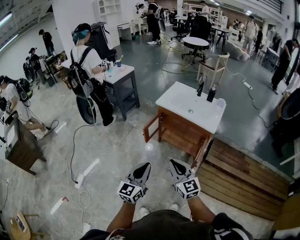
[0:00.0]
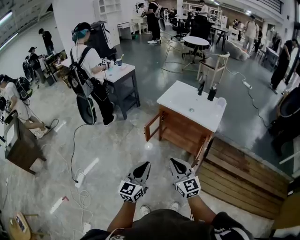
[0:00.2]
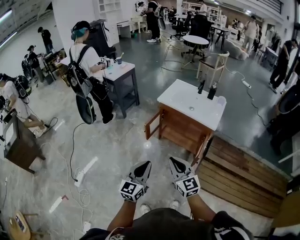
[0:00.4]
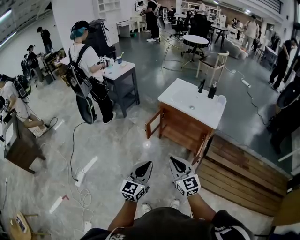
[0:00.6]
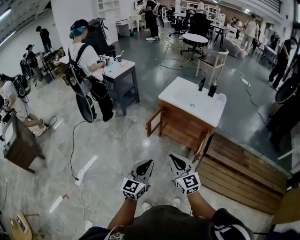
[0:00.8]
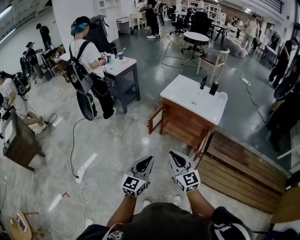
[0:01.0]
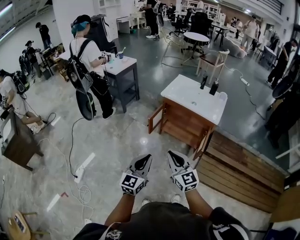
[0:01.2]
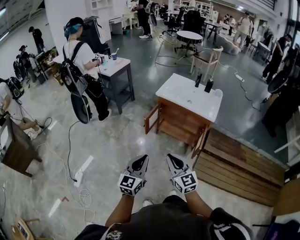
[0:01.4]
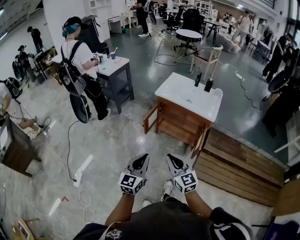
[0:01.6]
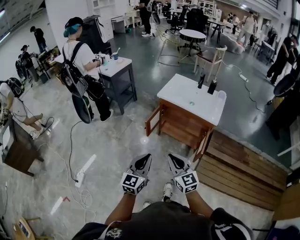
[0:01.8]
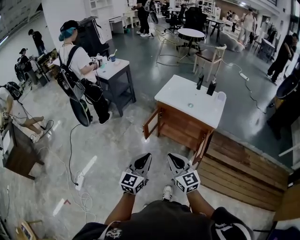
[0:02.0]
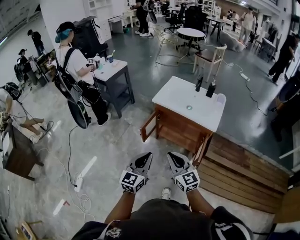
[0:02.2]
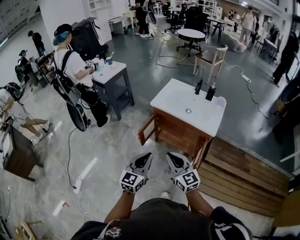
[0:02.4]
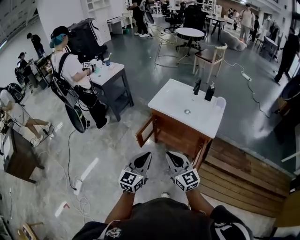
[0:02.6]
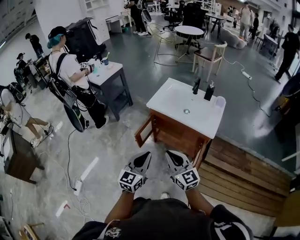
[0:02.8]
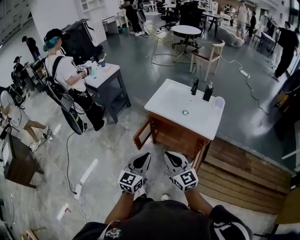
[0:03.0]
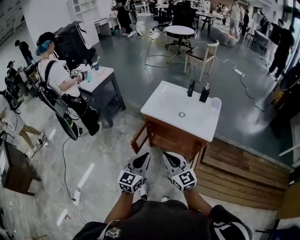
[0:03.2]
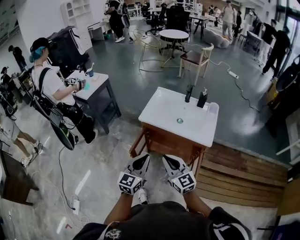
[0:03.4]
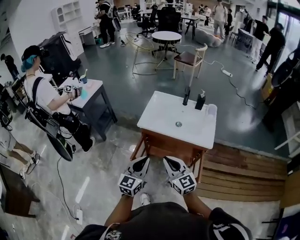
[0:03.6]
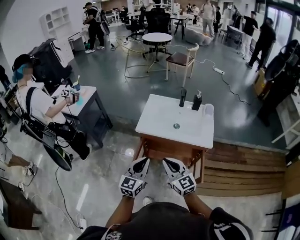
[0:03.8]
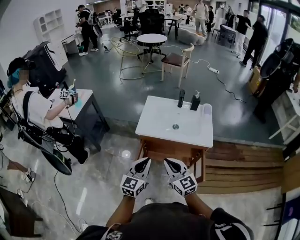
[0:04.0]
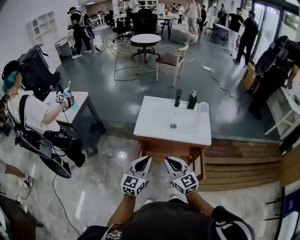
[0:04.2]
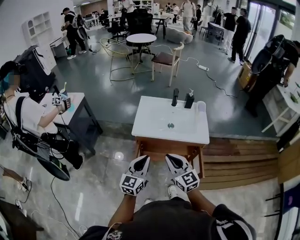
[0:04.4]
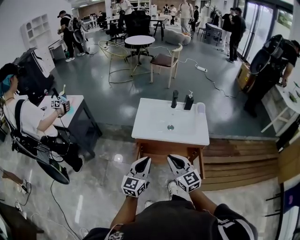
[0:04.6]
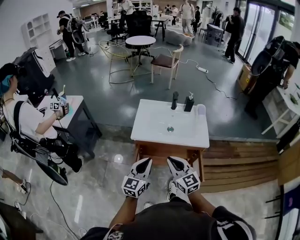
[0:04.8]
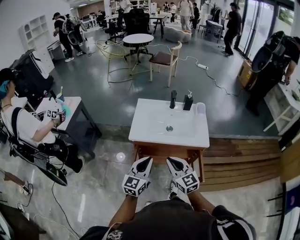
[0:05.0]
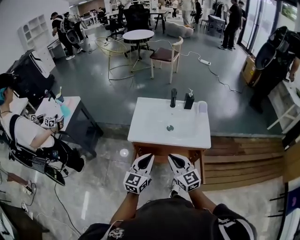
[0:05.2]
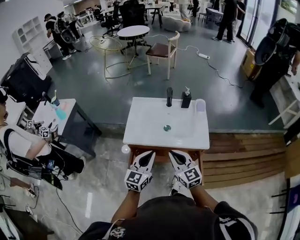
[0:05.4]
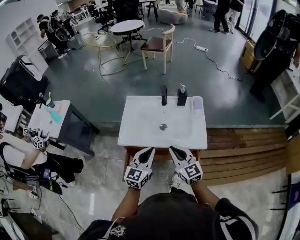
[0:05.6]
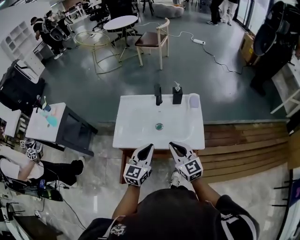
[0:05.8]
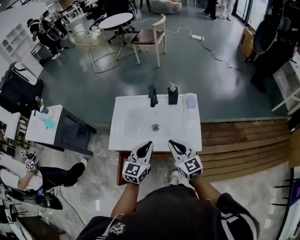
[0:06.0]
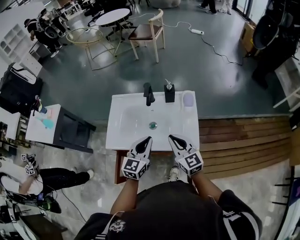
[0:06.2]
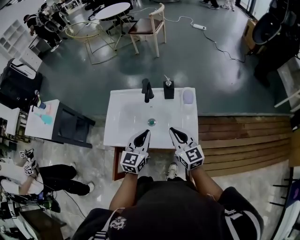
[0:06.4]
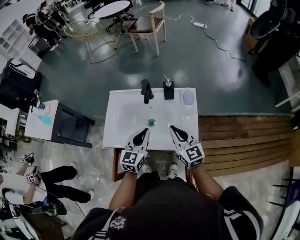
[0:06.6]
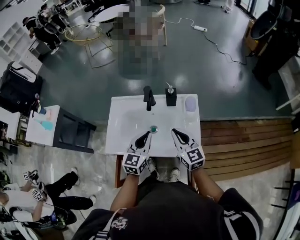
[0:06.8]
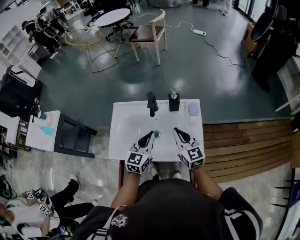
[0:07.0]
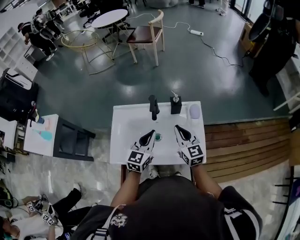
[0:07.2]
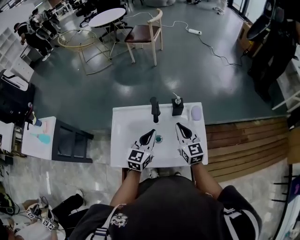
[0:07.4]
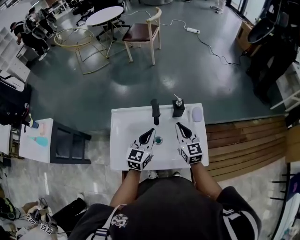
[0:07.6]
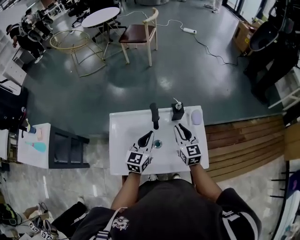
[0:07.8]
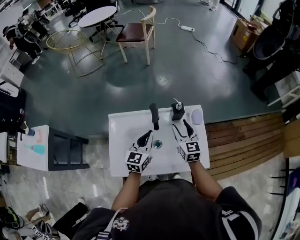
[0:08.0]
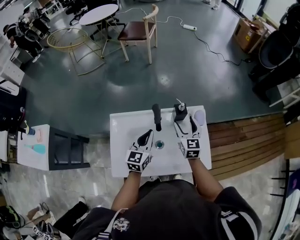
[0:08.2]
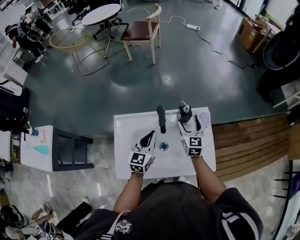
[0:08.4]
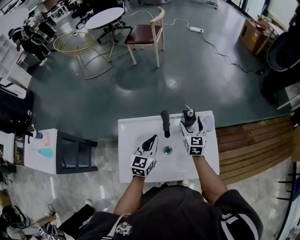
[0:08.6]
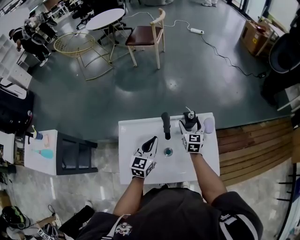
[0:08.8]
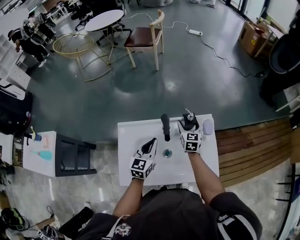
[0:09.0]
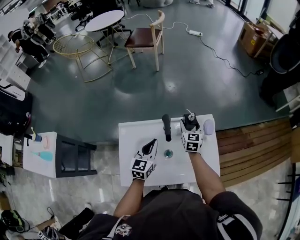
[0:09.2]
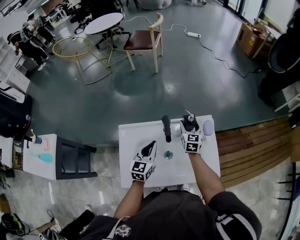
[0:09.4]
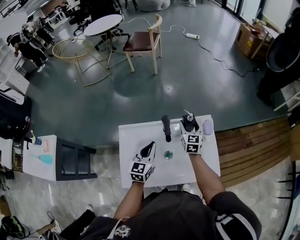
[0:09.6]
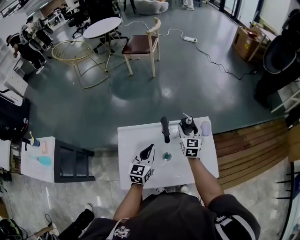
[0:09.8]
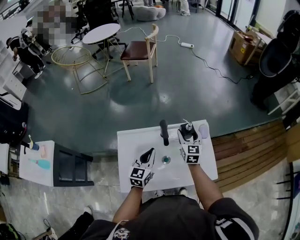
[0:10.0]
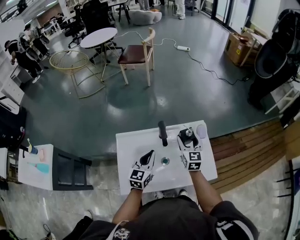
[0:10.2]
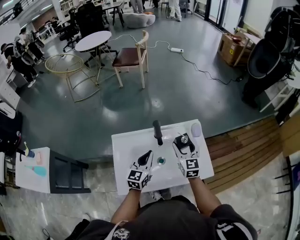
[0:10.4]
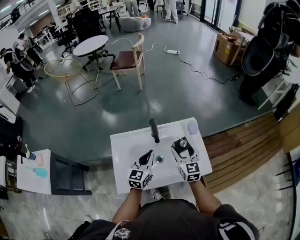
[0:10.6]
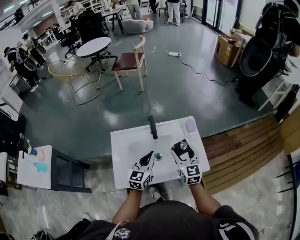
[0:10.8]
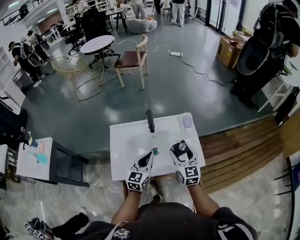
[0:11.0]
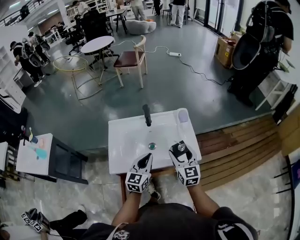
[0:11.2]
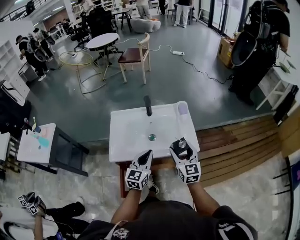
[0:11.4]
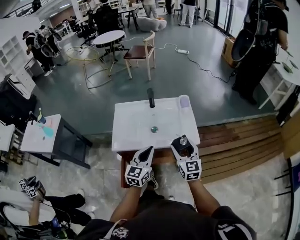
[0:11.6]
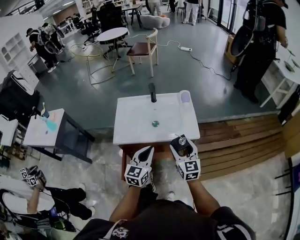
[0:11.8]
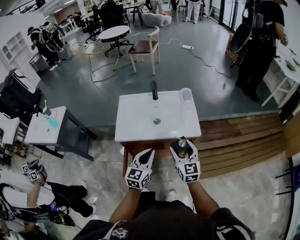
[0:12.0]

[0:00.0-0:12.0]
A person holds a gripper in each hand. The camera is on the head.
0:00.0 to 0:01.6: Both grippers move to the left, approximately 5 cm.
0:01.6 to 0:03.0: The two grippers go roughly 25 cm forward and to the right.
0:03.0 to 0:04.4: The two grippers go approximately 20 cm forward and to the left. The left gripper rotates approximately 20 degrees. Meanwhile the right gripper changes its angle by approximately 20 degrees.
0:04.4 to 0:06.0: The grippers both shift forward and to the right by approximately 30 cm.
0:06.0 to 0:07.6: Both grippers travel together forward, approximately 20 cm.
0:07.6 to 0:09.0: The left gripper goes approximately 5 cm to the left. Meanwhile the right gripper travels forward and downward by roughly 15 cm, changes its angle by roughly 20 degrees, and opens its fingers.
0:09.0 to 0:10.4: The right gripper shifts approximately 15 cm backward and upward.
0:10.4 to 0:12.0: The two grippers go about 35 cm backward.

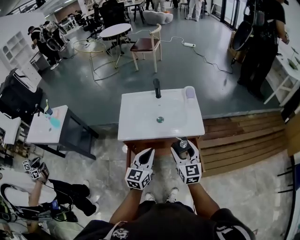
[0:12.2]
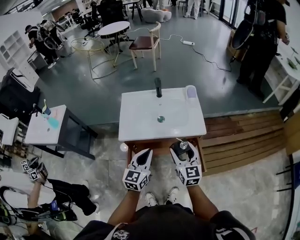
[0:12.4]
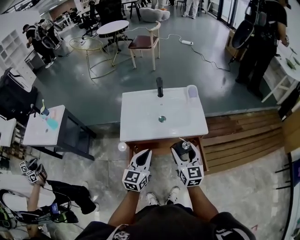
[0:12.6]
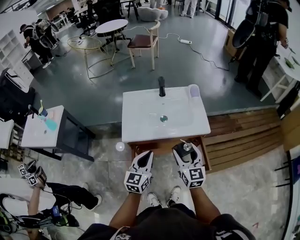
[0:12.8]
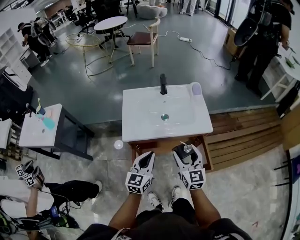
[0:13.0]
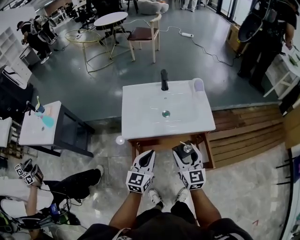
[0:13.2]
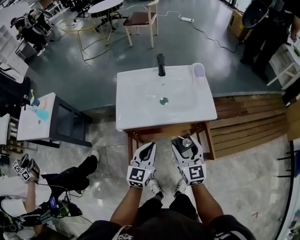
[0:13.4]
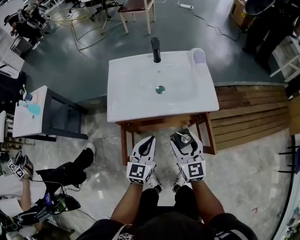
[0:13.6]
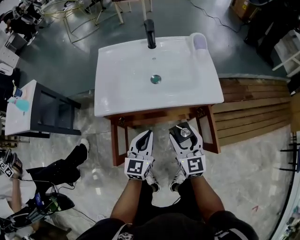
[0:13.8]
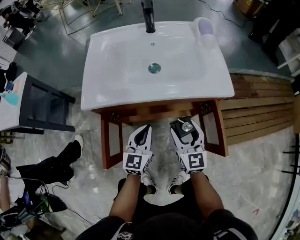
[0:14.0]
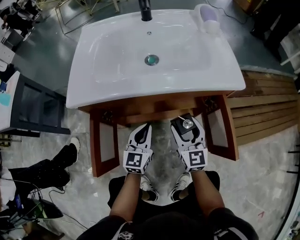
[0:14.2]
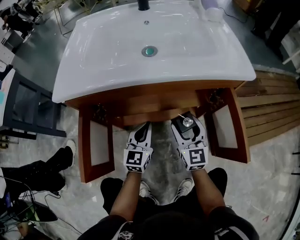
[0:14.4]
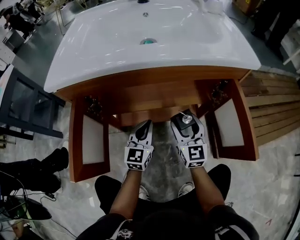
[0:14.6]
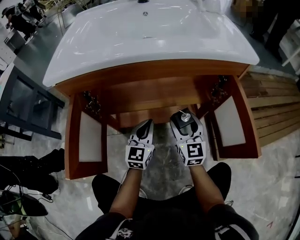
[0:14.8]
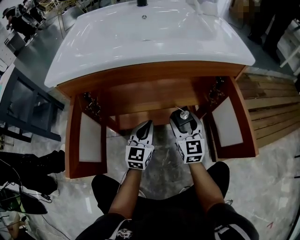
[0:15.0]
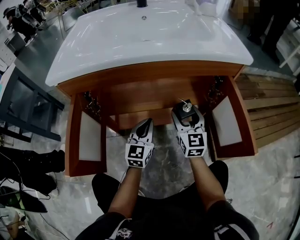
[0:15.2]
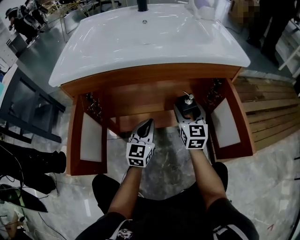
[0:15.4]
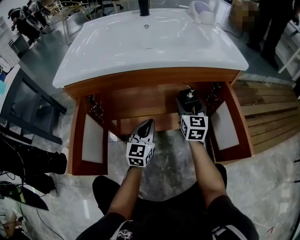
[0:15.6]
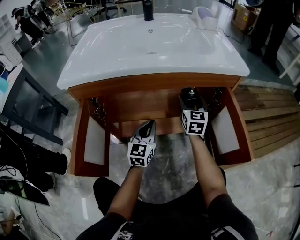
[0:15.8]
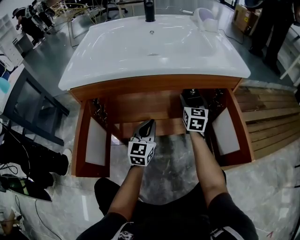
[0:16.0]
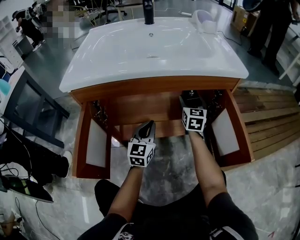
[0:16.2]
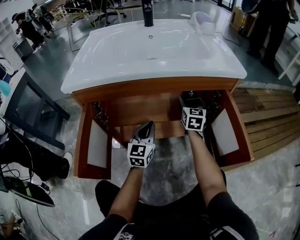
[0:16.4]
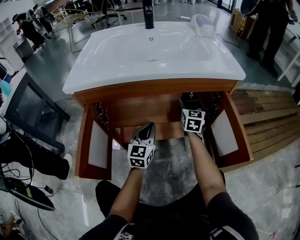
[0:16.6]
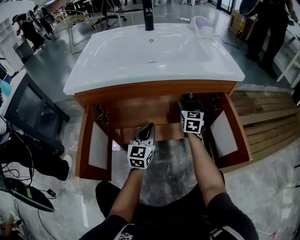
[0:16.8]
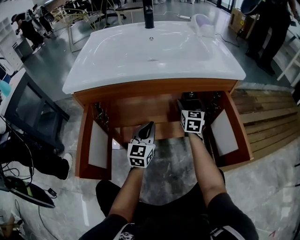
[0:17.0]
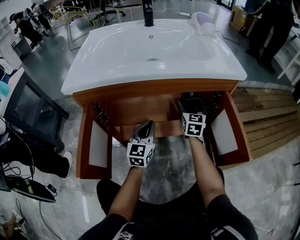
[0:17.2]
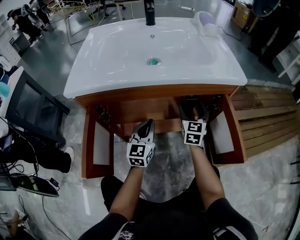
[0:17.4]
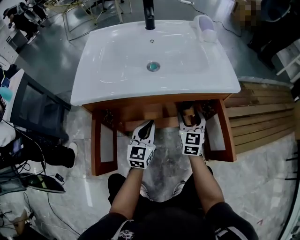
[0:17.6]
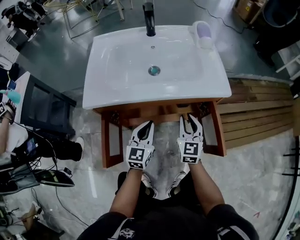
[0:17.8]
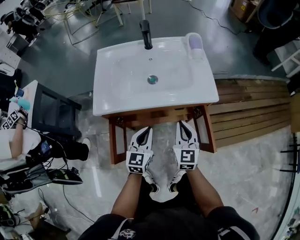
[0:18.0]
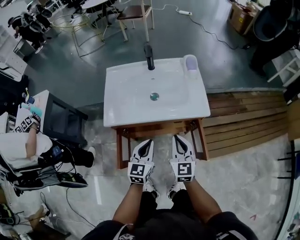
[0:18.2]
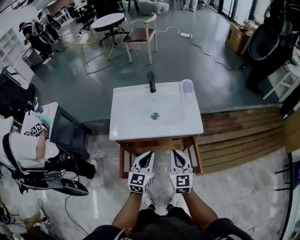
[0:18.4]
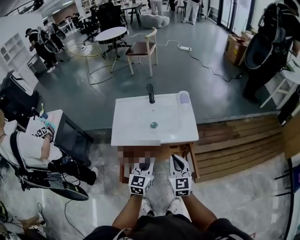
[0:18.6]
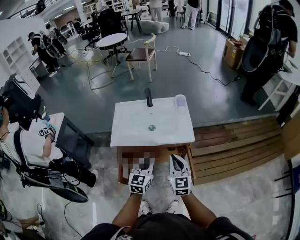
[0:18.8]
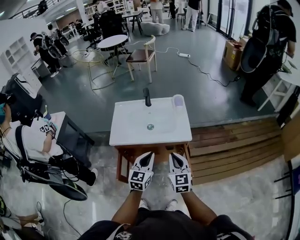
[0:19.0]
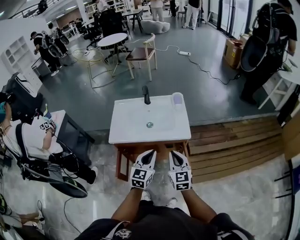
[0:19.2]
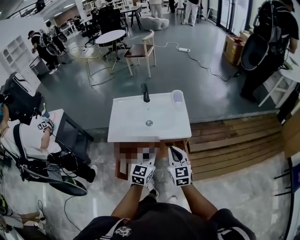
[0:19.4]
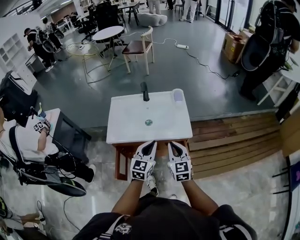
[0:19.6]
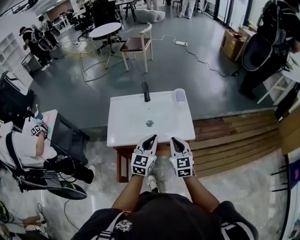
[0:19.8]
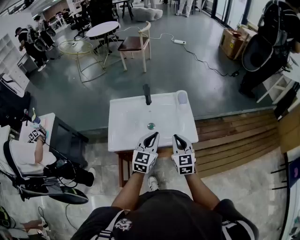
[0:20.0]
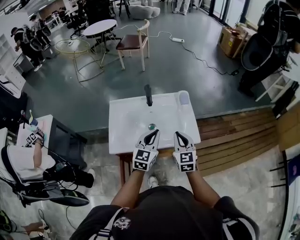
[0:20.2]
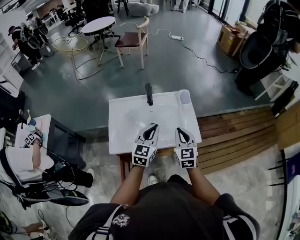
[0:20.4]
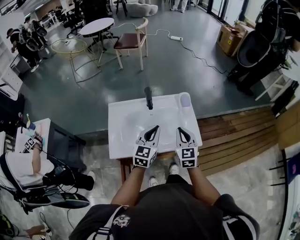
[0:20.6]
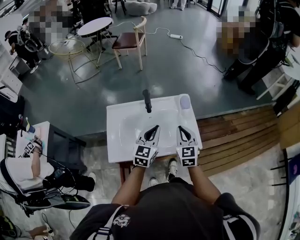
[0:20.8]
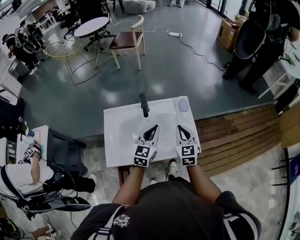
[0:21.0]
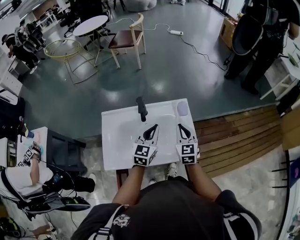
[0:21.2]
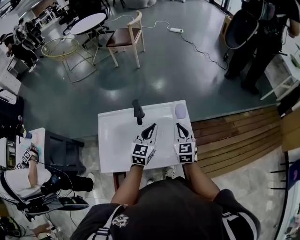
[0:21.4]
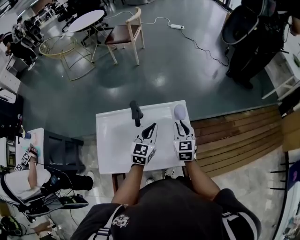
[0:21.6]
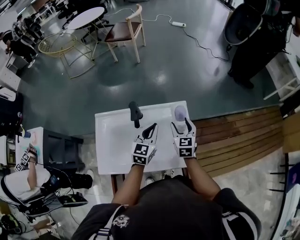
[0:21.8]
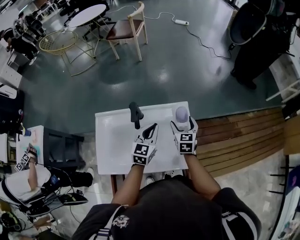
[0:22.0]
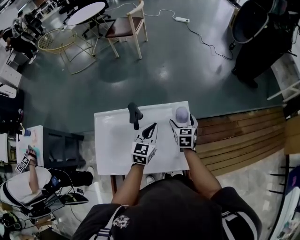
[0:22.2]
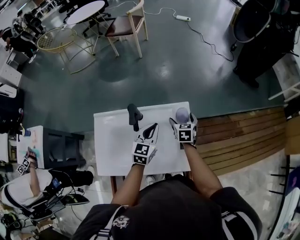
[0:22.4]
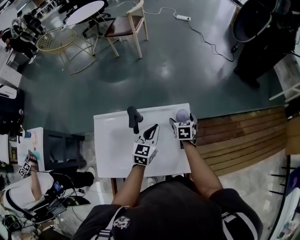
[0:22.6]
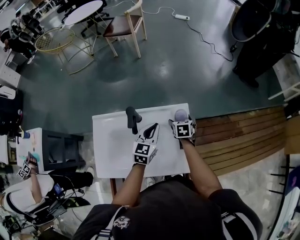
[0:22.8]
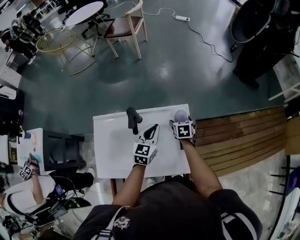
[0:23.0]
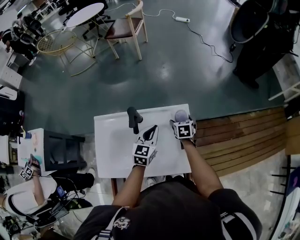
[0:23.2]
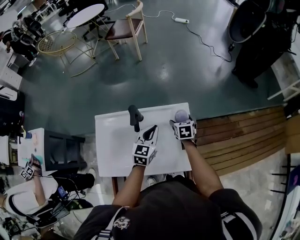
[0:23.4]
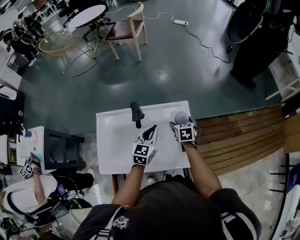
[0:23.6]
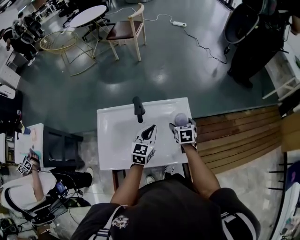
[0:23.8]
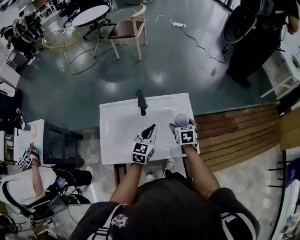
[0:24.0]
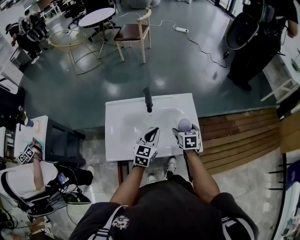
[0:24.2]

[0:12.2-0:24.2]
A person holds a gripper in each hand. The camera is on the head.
0:12.2 to 0:13.8: The grippers both shift downward by approximately 20 cm.
0:13.8 to 0:15.2: Both grippers move downward, some 30 cm.
0:15.2 to 0:16.6: The right gripper is displaced forward by about 15 cm.
0:16.6 to 0:18.2: The right gripper is displaced upward and backward by about 40 cm, and closes its fingers. The left gripper moves upward, some 35 cm.
0:18.2 to 0:19.8: The left gripper shifts about 15 cm upward and to the right, while the right gripper is displaced upward by about 10 cm.
0:19.8 to 0:21.2: Both grippers travel together forward, some 25 cm.
0:21.2 to 0:22.6: The right gripper moves forward and downward, approximately 25 cm, changes its angle by approximately 30 degrees, and opens; the left gripper shifts roughly 15 cm forward and downward.
0:22.6 to 0:24.2: The grippers both shift backward by about 15 cm.
